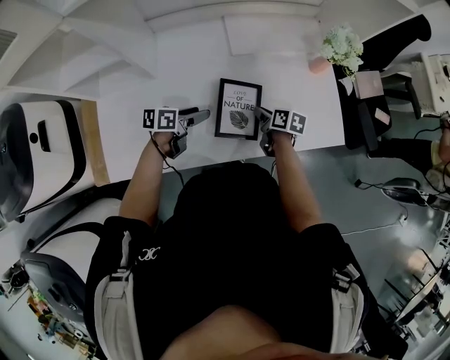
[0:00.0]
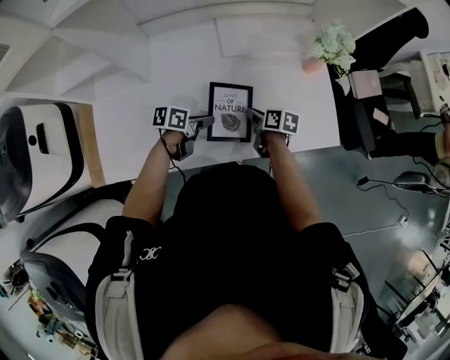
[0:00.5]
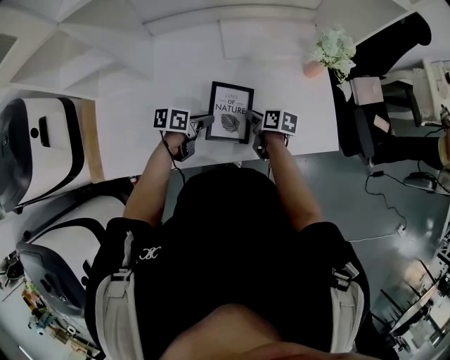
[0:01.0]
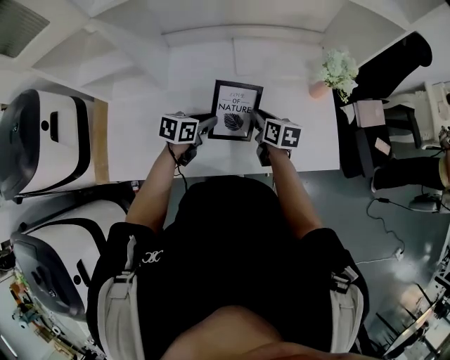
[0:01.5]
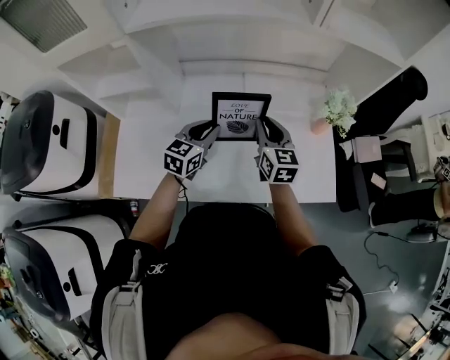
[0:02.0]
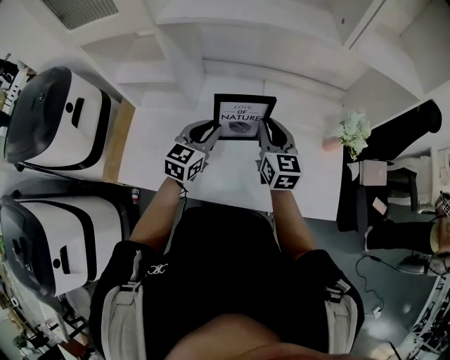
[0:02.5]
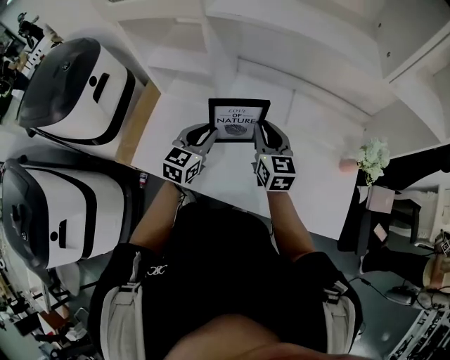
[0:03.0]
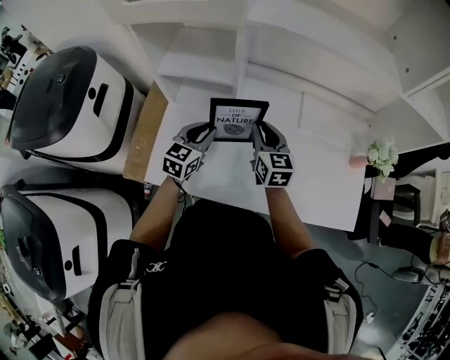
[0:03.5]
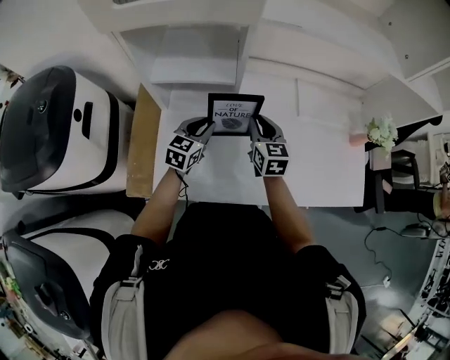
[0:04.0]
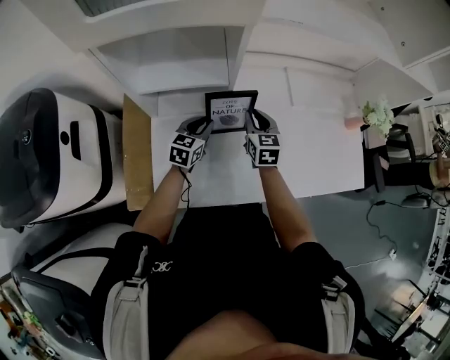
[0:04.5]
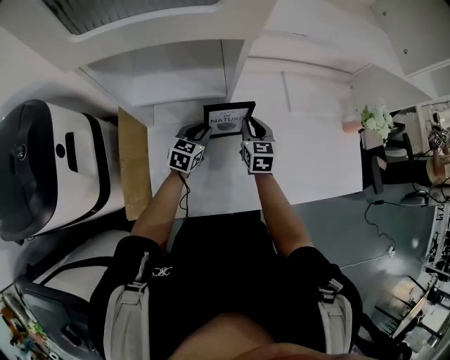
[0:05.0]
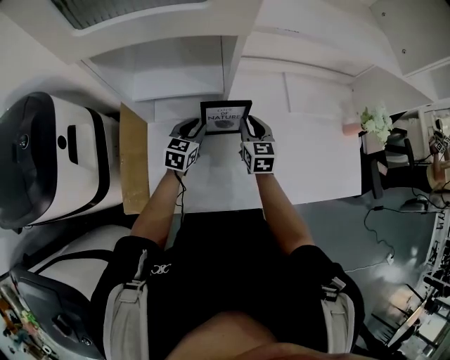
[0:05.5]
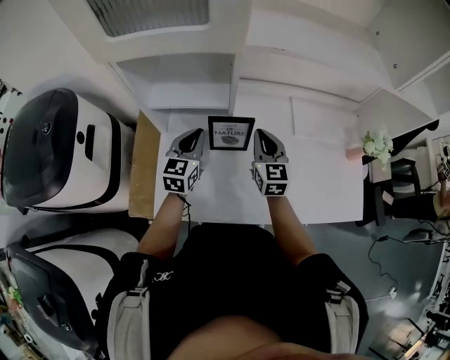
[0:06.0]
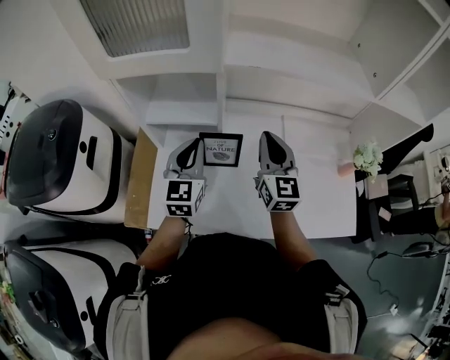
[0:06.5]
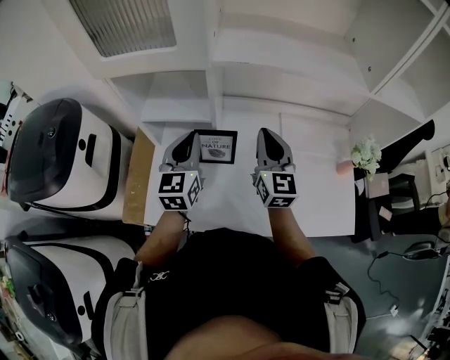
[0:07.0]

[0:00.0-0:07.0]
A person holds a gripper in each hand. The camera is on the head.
0:00.0 to 0:02.0: The left gripper moves upward, about 15 cm, turns by roughly 50 degrees, and closes up. Meanwhile the right gripper travels upward by approximately 25 cm, and rotates approximately 50 degrees.
0:02.0 to 0:03.5: Both grippers move to the left, about 25 cm.
0:03.5 to 0:05.0: Both grippers travel together downward and forward, approximately 15 cm. The right gripper rotates roughly 20 degrees.
0:05.0 to 0:07.0: The two grippers go roughly 25 cm upward. The right gripper tilts its fingers some 30 degrees upward; the left gripper changes its angle by approximately 40 degrees.

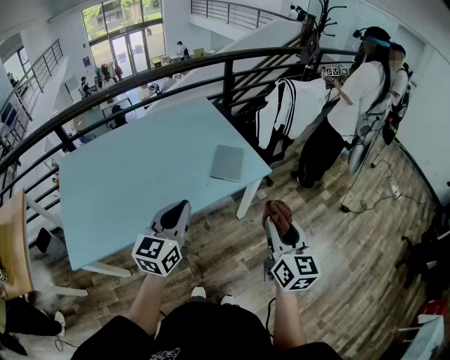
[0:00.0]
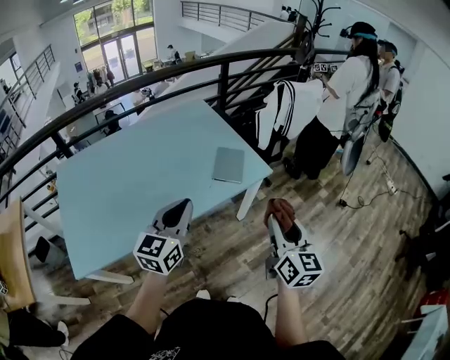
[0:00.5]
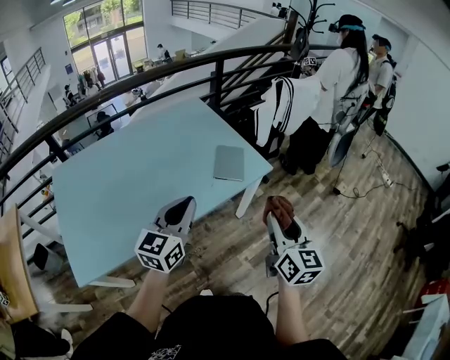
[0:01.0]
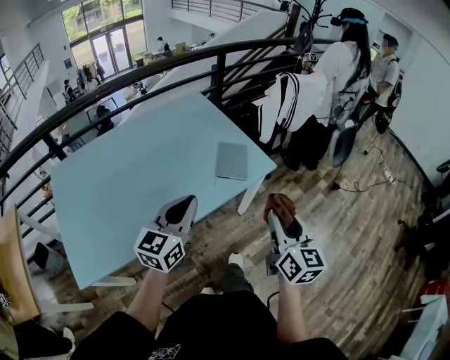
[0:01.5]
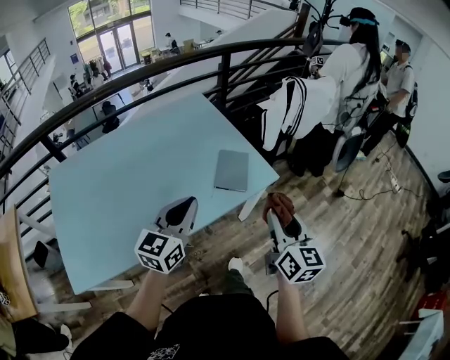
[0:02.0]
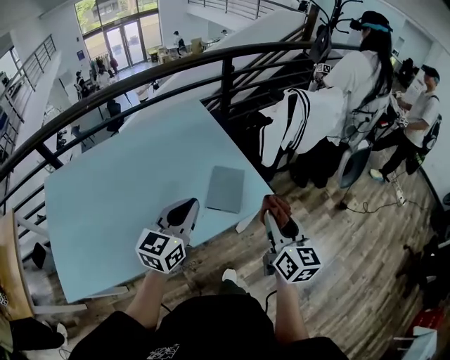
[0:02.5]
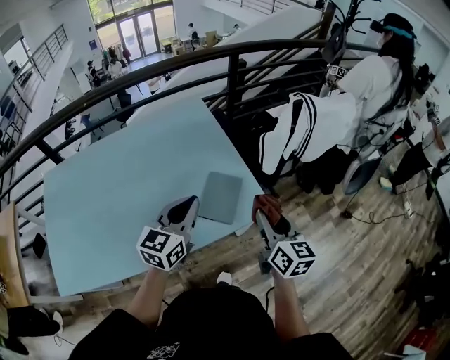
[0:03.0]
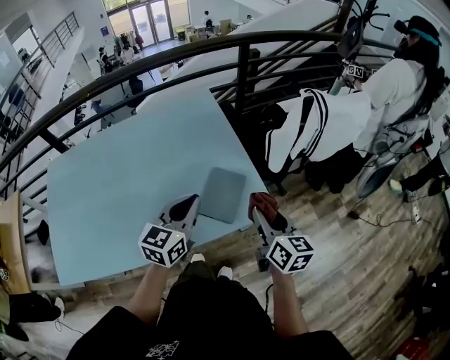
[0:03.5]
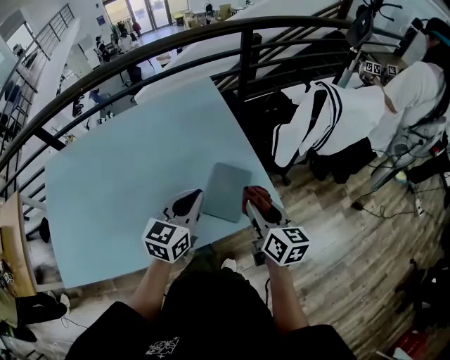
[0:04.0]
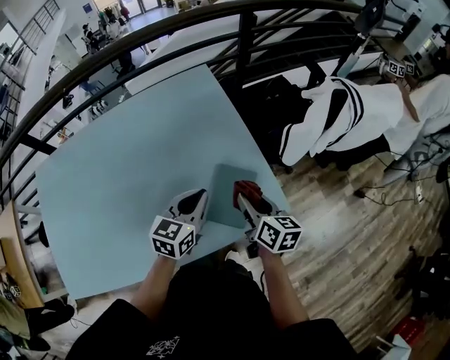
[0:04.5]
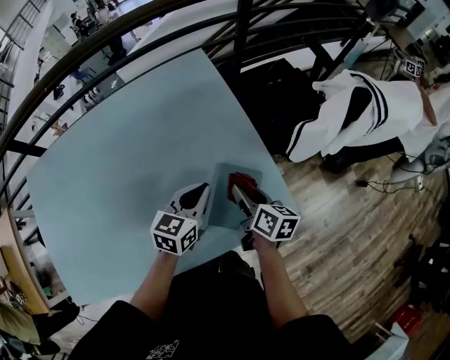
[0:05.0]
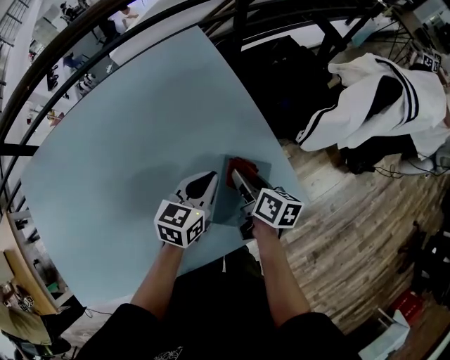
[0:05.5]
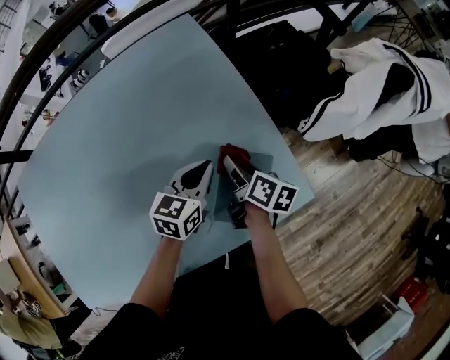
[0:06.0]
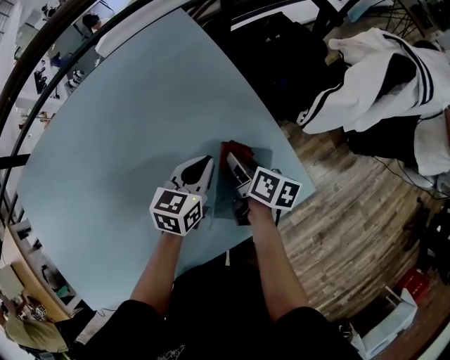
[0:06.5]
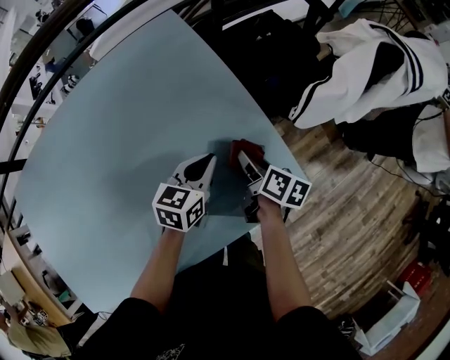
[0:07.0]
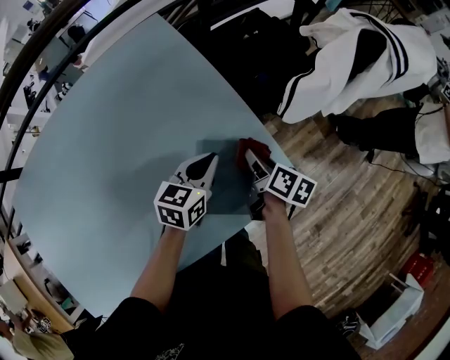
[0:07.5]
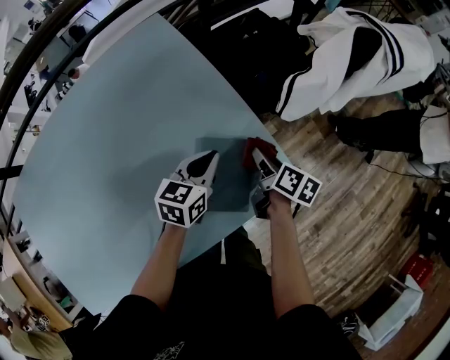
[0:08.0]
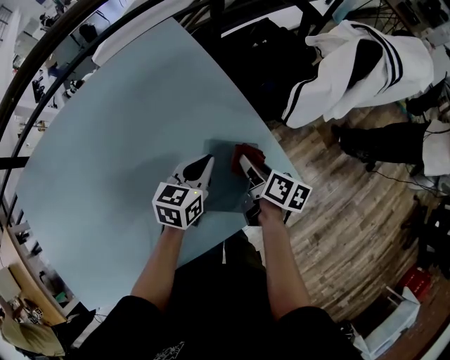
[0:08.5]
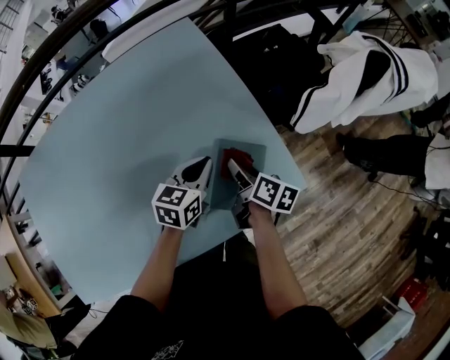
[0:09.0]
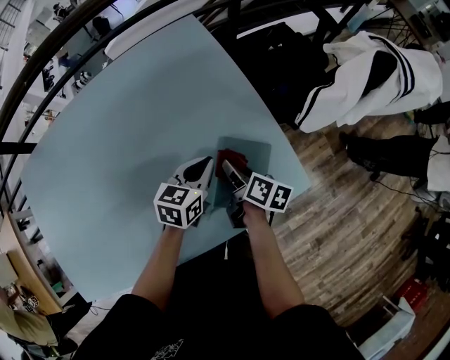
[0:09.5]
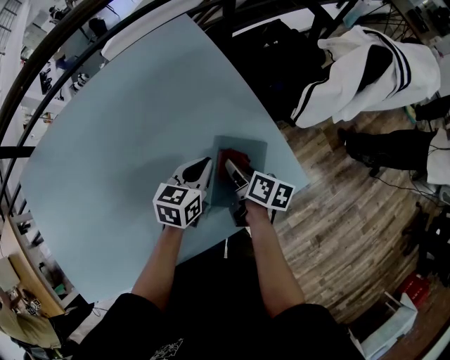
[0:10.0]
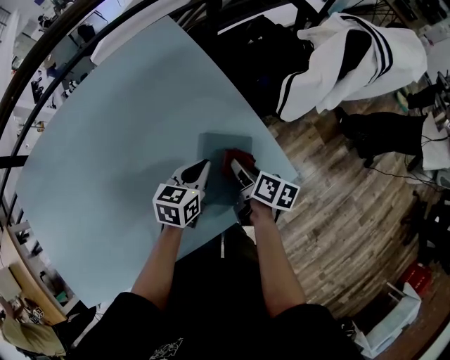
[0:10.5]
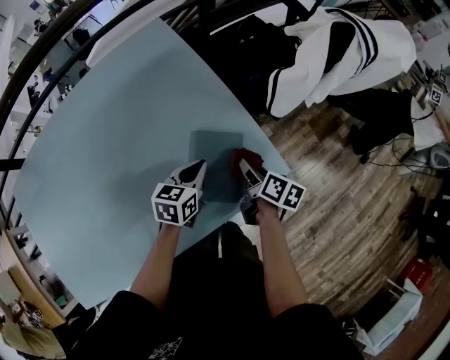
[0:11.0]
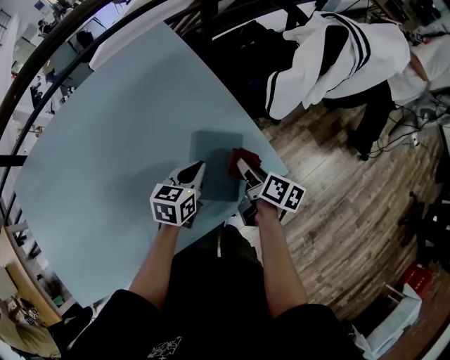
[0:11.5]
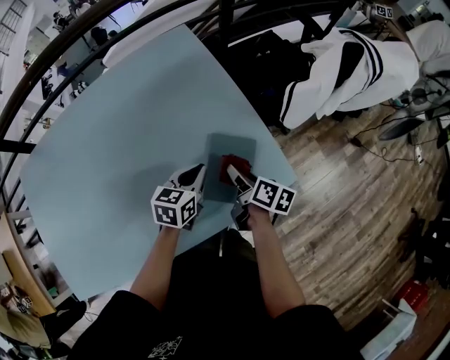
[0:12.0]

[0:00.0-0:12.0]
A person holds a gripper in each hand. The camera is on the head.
0:00.0 to 0:02.0: The left gripper heads forward, covering roughly 10 cm; the right gripper is displaced forward and to the left by roughly 15 cm.
0:02.0 to 0:04.0: The right gripper travels forward and downward by about 30 cm, and turns by roughly 30 degrees. Meanwhile the left gripper goes roughly 25 cm forward.
0:04.0 to 0:06.0: The right gripper travels downward, forward and to the left by some 30 cm, and rotates about 40 degrees. The left gripper shifts about 25 cm downward and forward.
0:06.0 to 0:08.0: The right gripper is displaced to the right by roughly 15 cm, while the left gripper travels to the right by some 10 cm.
0:08.0 to 0:10.0: The right gripper moves to the left, some 15 cm; the left gripper is displaced to the left by about 5 cm.
0:10.0 to 0:12.0: The right gripper reaches roughly 10 cm to the right, then returns.

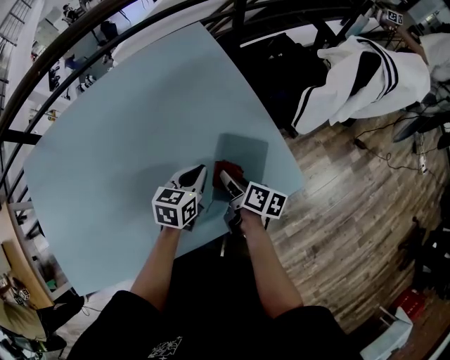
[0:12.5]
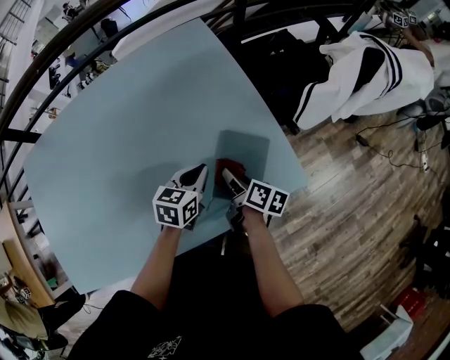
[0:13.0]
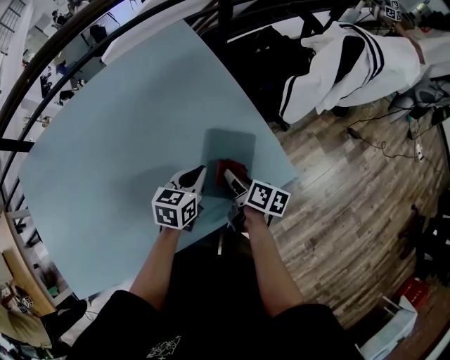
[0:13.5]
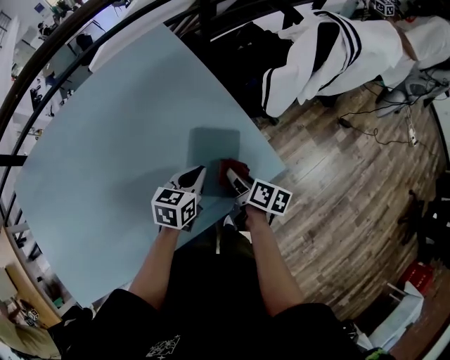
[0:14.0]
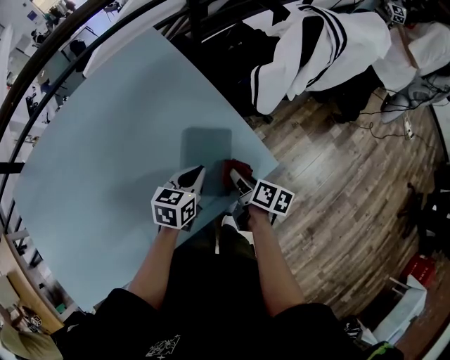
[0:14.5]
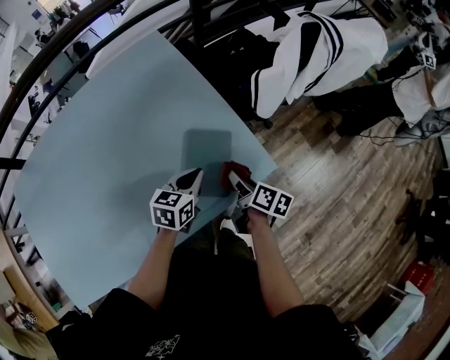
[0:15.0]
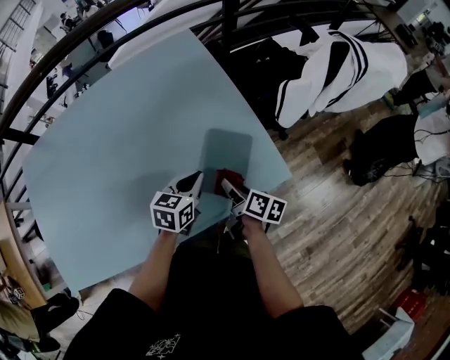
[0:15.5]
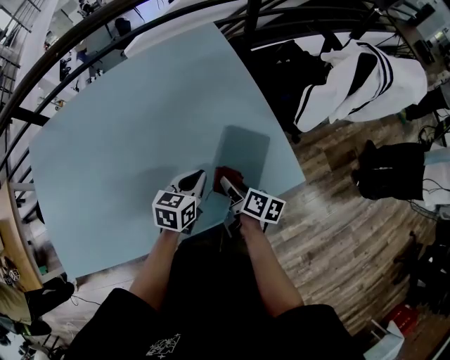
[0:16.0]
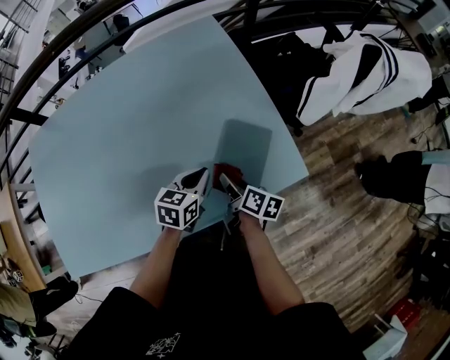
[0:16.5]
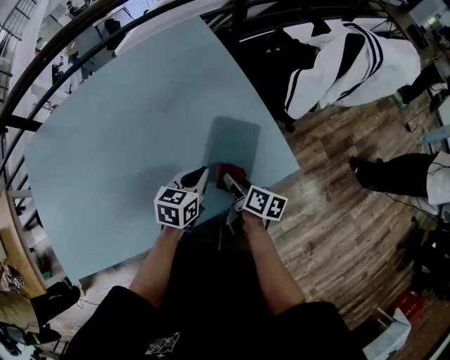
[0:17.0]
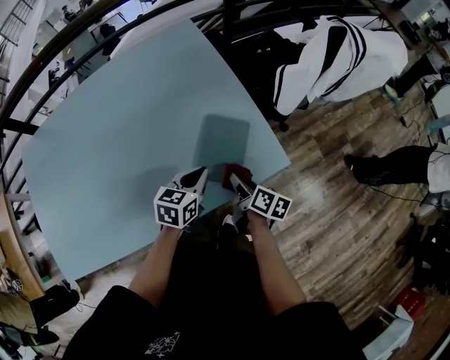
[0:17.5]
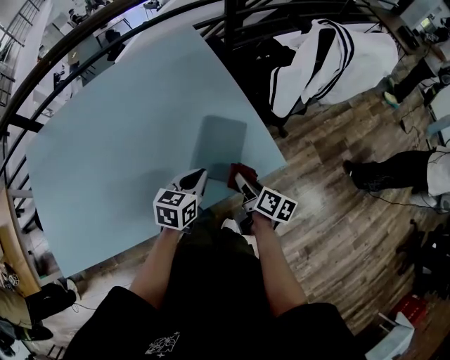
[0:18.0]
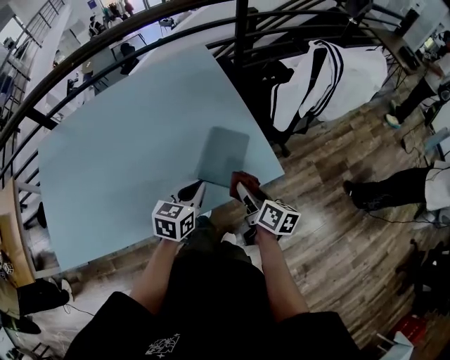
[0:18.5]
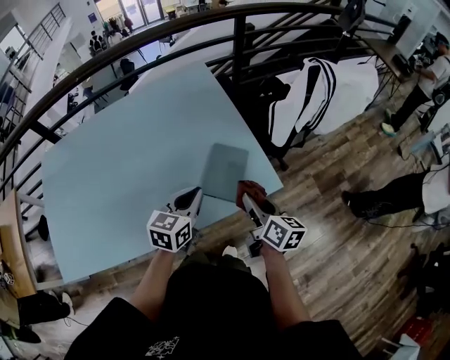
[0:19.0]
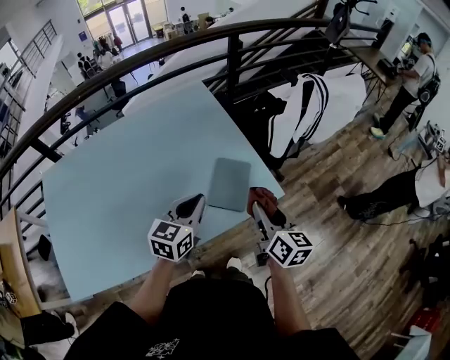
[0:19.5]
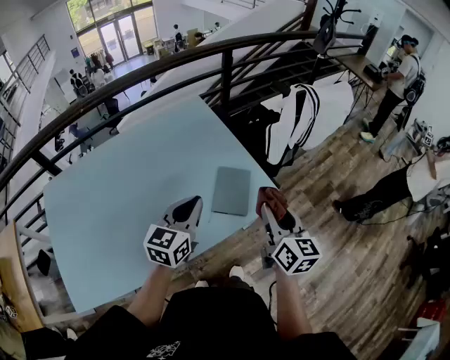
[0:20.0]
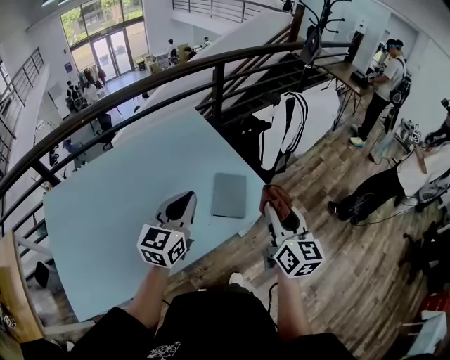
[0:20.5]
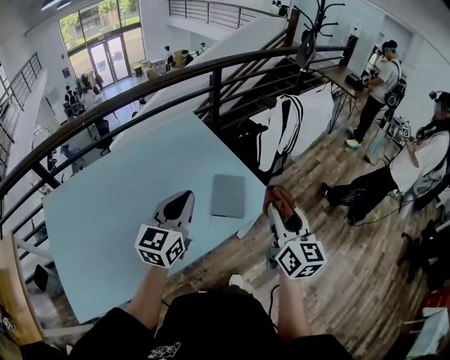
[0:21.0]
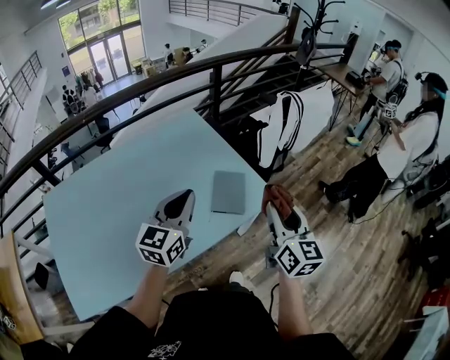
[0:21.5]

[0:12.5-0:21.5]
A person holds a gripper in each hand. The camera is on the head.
0:12.5 to 0:14.5: Both grippers move to the right, roughly 10 cm.
0:14.5 to 0:17.0: The grippers both shift to the left by some 10 cm.
0:17.0 to 0:19.5: Both grippers move upward, some 20 cm. The right gripper swivels about 40 degrees. The left gripper rotates some 20 degrees.
0:19.5 to 0:21.5: The right gripper goes approximately 15 cm upward and backward, and changes its angle by roughly 20 degrees. Meanwhile the left gripper moves upward, backward and to the left, about 15 cm.
